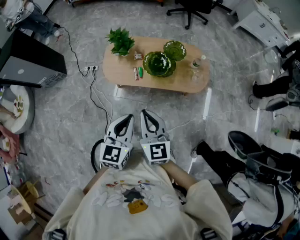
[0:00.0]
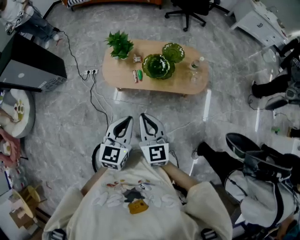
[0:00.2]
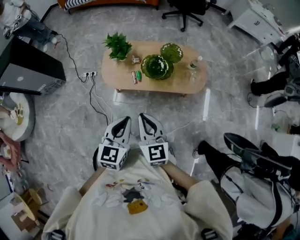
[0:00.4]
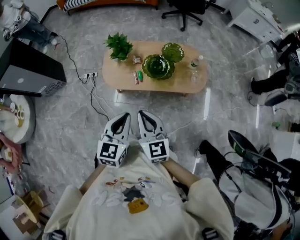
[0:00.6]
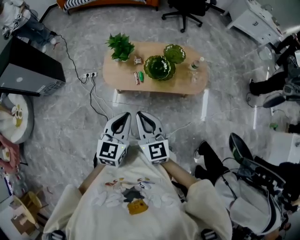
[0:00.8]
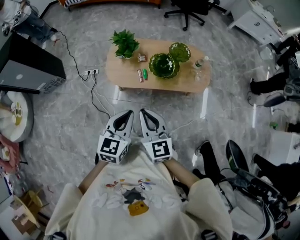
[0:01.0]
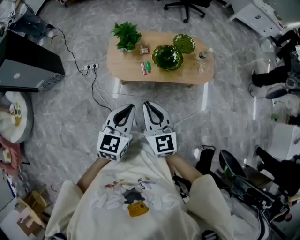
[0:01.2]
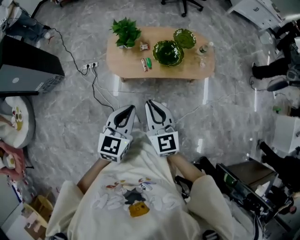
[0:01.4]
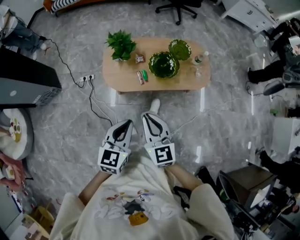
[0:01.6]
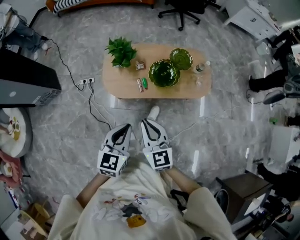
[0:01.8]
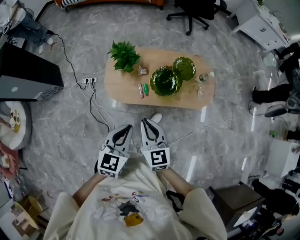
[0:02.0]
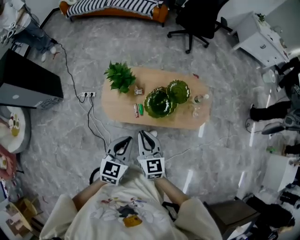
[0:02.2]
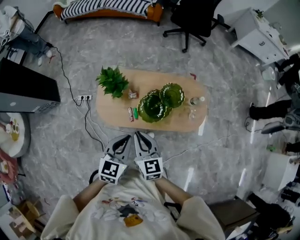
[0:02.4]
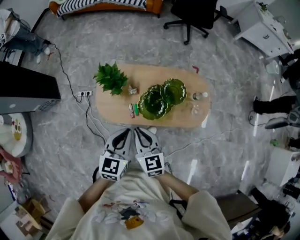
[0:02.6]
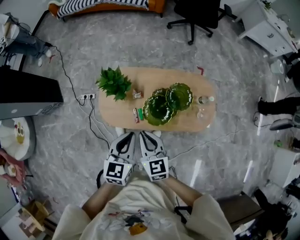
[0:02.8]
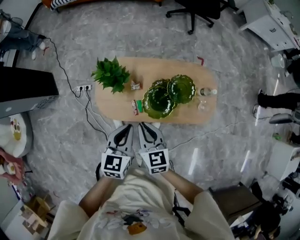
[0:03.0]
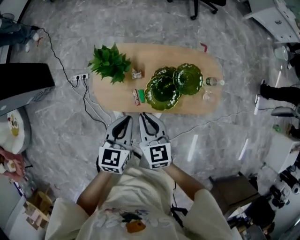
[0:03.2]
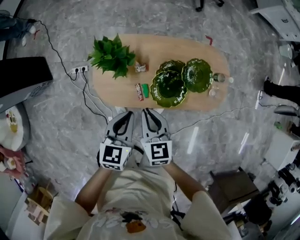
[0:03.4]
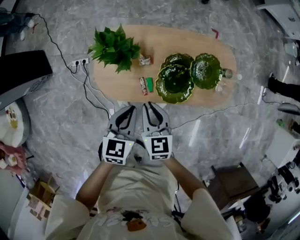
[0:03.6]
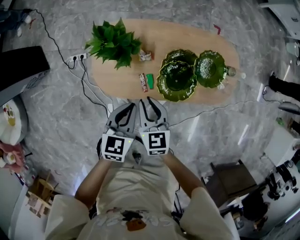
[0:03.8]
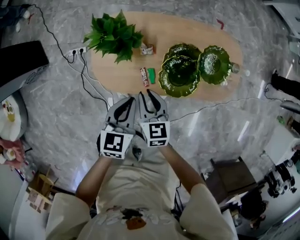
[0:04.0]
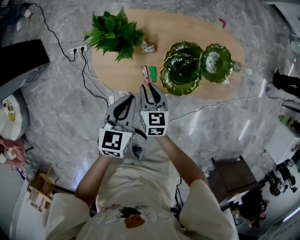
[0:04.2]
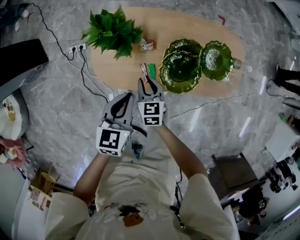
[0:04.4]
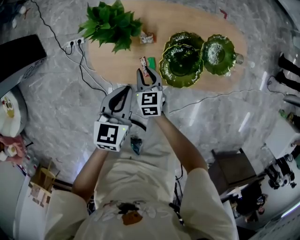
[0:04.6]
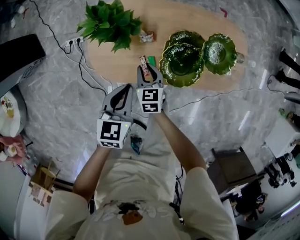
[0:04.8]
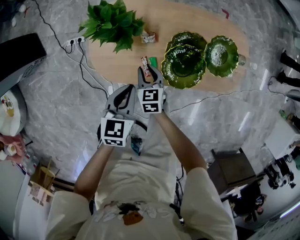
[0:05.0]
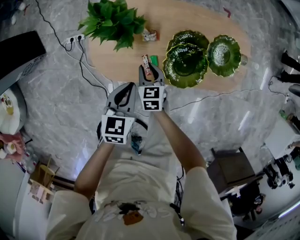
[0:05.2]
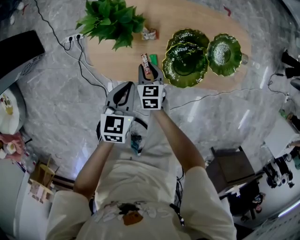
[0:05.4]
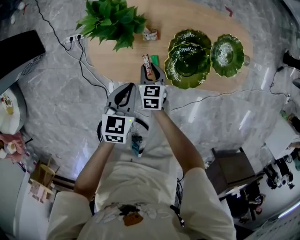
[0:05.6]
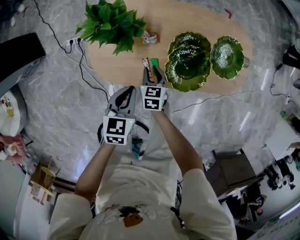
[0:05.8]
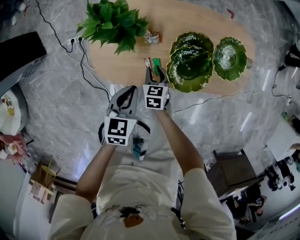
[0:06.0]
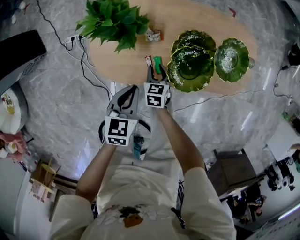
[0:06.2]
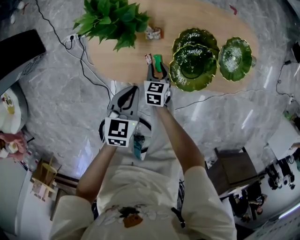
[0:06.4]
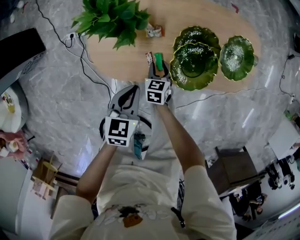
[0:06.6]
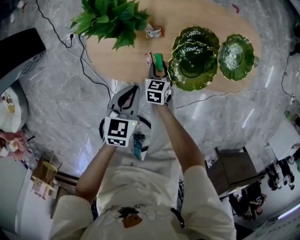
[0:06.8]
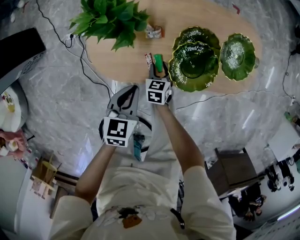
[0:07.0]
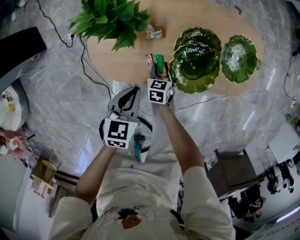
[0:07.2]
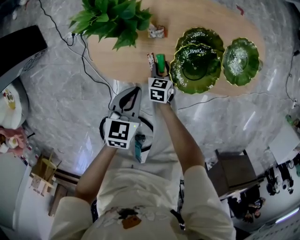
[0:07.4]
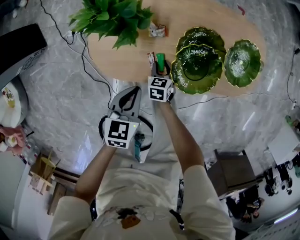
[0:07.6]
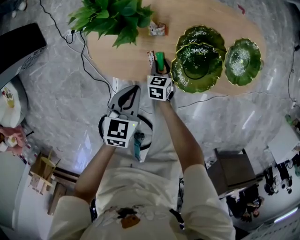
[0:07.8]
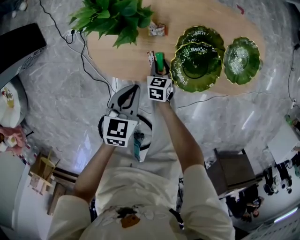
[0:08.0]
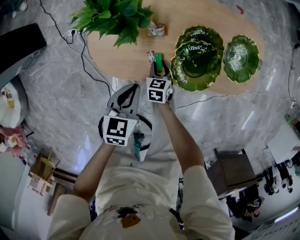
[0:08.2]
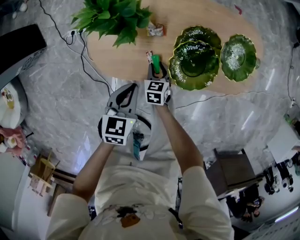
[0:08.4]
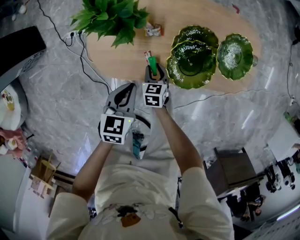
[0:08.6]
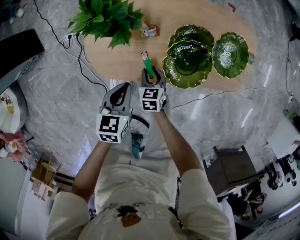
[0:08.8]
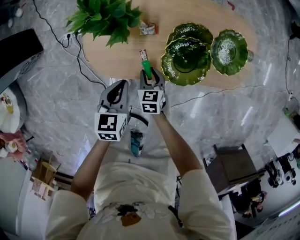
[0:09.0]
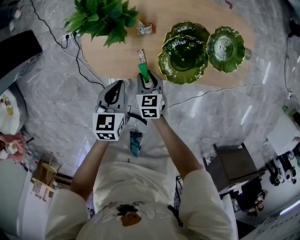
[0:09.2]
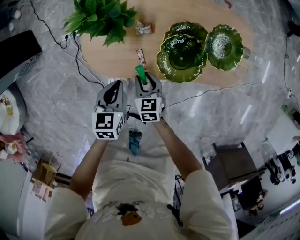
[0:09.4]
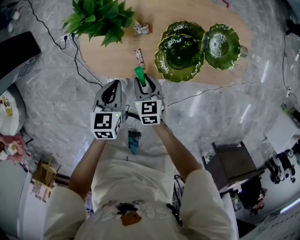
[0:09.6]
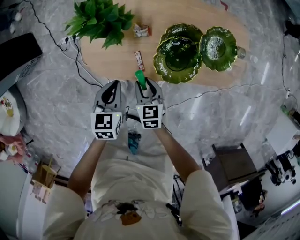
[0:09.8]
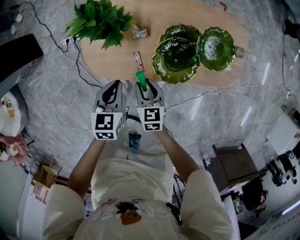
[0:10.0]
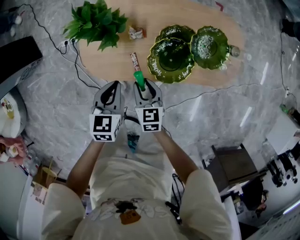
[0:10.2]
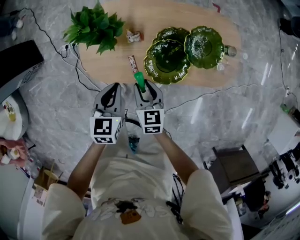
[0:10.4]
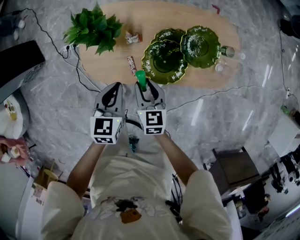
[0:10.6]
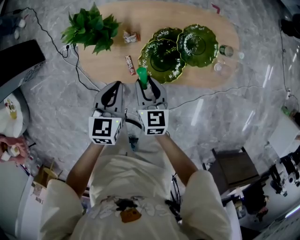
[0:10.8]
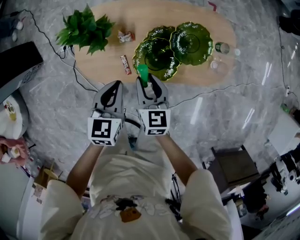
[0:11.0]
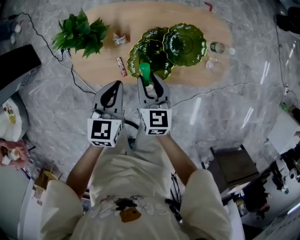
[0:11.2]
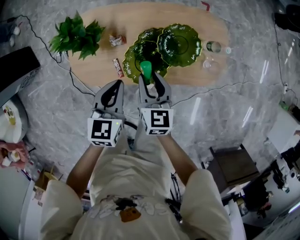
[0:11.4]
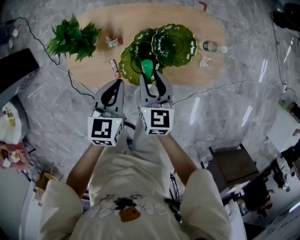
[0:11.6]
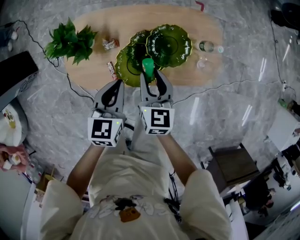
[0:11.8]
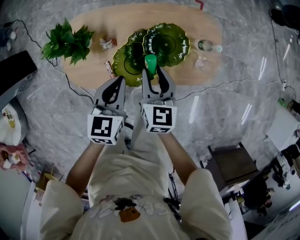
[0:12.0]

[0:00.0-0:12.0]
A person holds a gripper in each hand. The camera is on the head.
0:00.0 to 0:01.6: The right gripper goes some 15 cm to the left and downward, while the left gripper moves to the left, about 15 cm.
0:01.6 to 0:03.0: Both grippers travel together forward, about 30 cm.
0:03.0 to 0:04.4: The left gripper is displaced downward and to the left by about 20 cm. Meanwhile the right gripper moves downward, some 30 cm.
0:04.4 to 0:06.0: The two grippers go approximately 10 cm downward.
0:06.0 to 0:07.6: The right gripper heads downward, covering approximately 10 cm.
0:07.6 to 0:09.0: The right gripper is displaced upward by approximately 10 cm.
0:09.0 to 0:10.4: The right gripper goes roughly 15 cm upward. Meanwhile the left gripper goes about 5 cm upward.
0:10.4 to 0:12.0: The right gripper shifts approximately 25 cm to the right, forward and upward. Meanwhile the left gripper is displaced to the right and forward by approximately 15 cm.

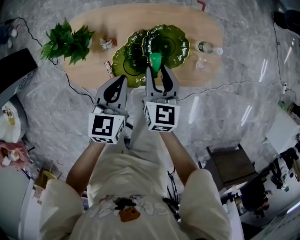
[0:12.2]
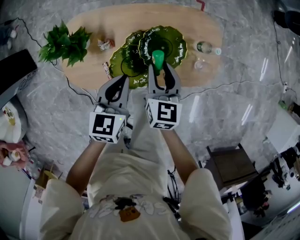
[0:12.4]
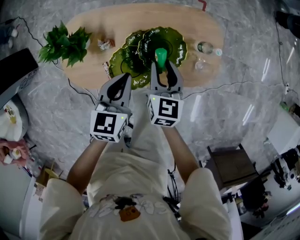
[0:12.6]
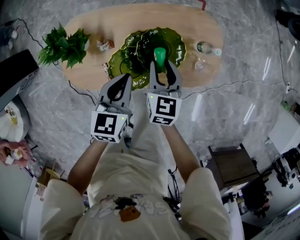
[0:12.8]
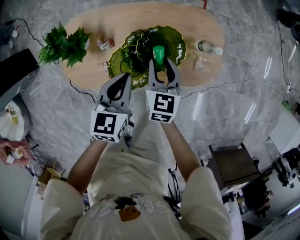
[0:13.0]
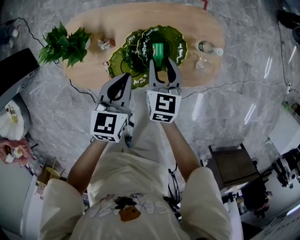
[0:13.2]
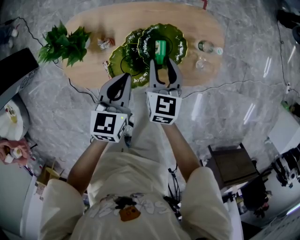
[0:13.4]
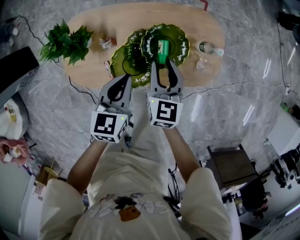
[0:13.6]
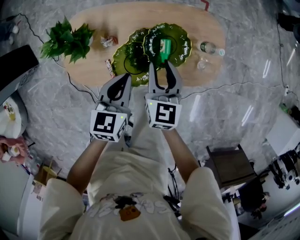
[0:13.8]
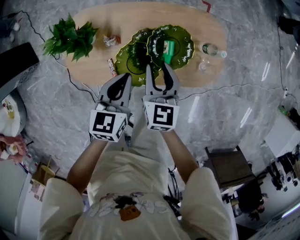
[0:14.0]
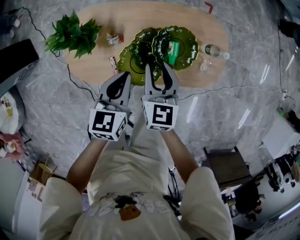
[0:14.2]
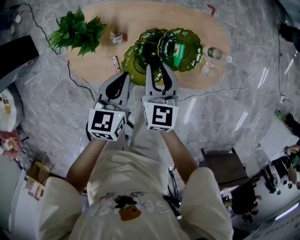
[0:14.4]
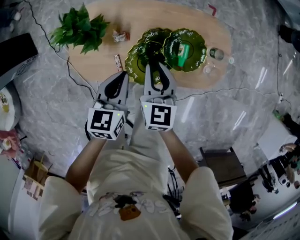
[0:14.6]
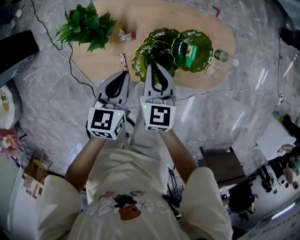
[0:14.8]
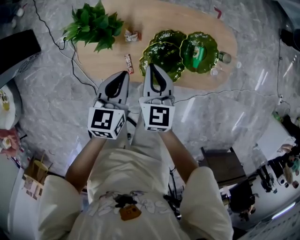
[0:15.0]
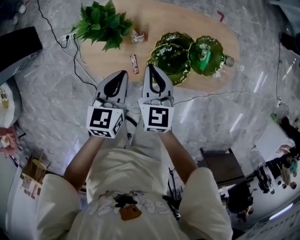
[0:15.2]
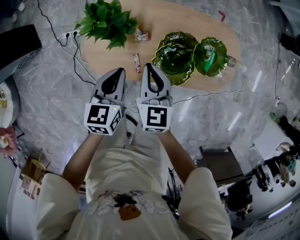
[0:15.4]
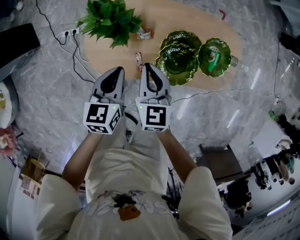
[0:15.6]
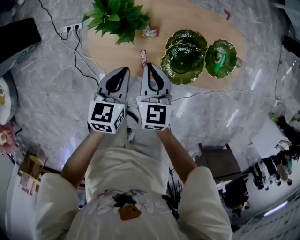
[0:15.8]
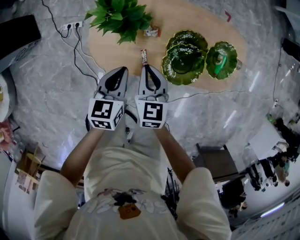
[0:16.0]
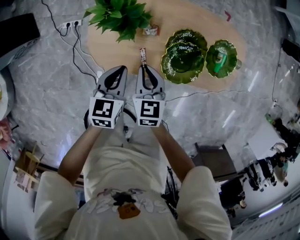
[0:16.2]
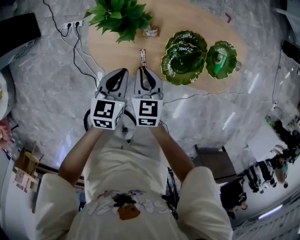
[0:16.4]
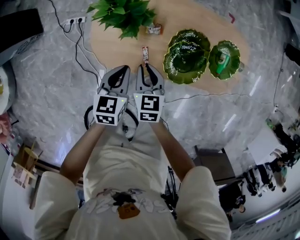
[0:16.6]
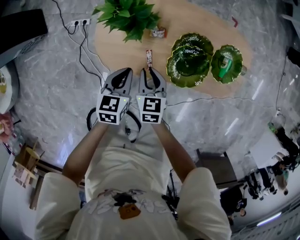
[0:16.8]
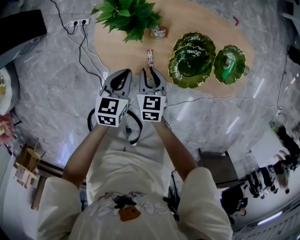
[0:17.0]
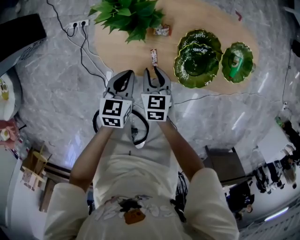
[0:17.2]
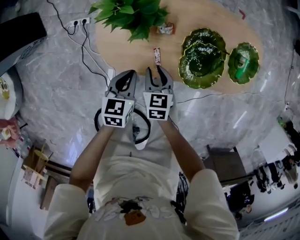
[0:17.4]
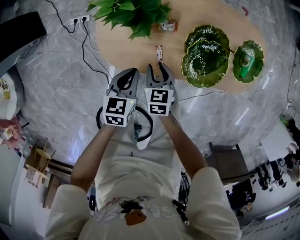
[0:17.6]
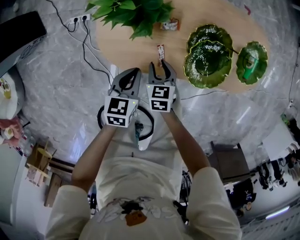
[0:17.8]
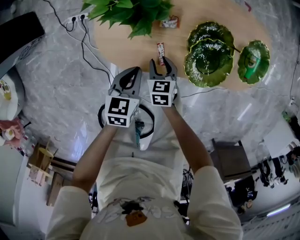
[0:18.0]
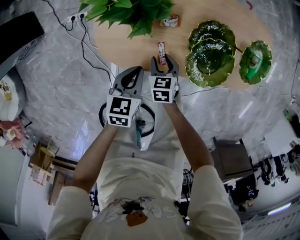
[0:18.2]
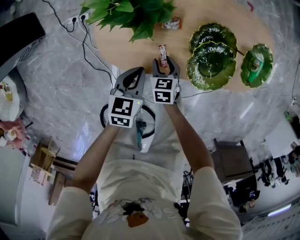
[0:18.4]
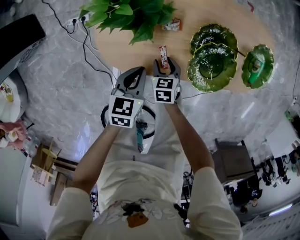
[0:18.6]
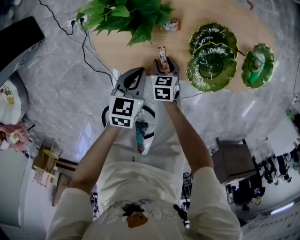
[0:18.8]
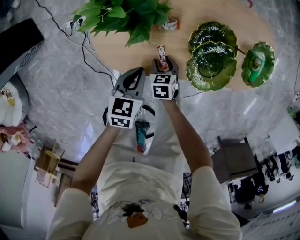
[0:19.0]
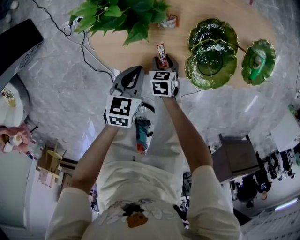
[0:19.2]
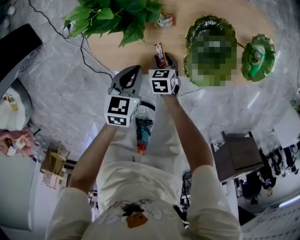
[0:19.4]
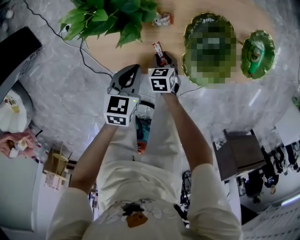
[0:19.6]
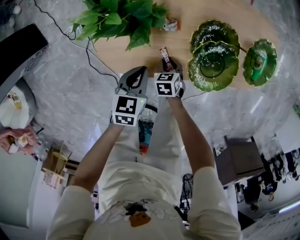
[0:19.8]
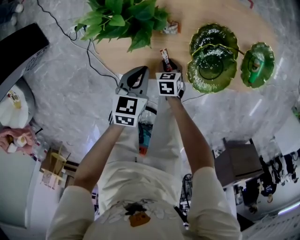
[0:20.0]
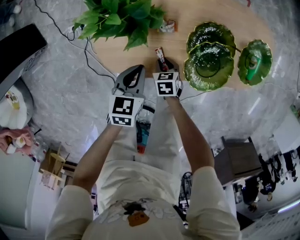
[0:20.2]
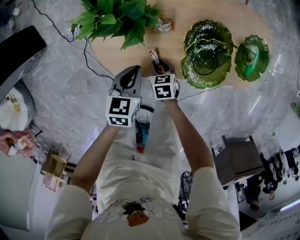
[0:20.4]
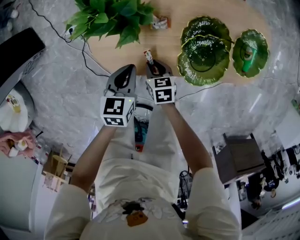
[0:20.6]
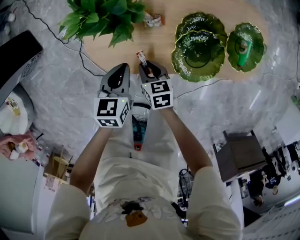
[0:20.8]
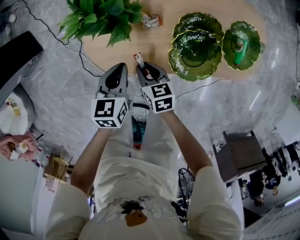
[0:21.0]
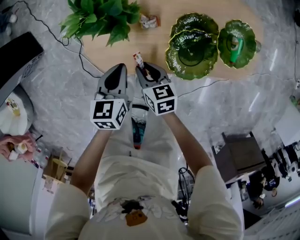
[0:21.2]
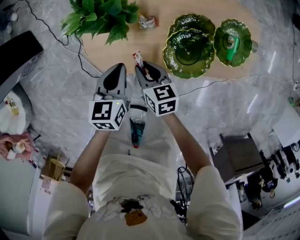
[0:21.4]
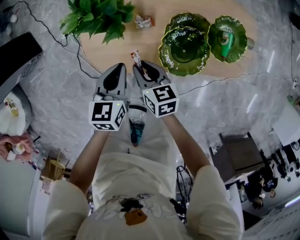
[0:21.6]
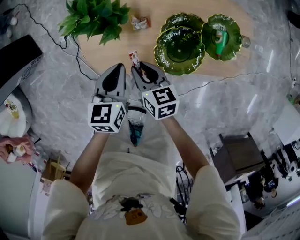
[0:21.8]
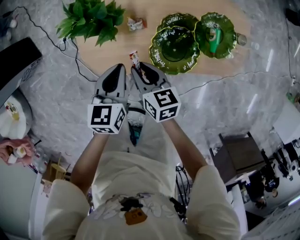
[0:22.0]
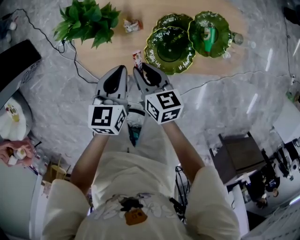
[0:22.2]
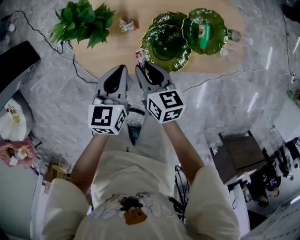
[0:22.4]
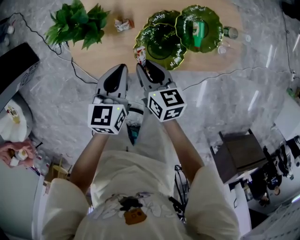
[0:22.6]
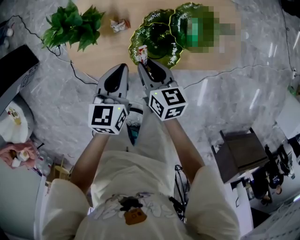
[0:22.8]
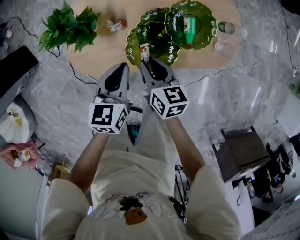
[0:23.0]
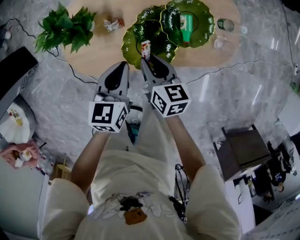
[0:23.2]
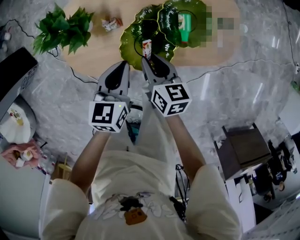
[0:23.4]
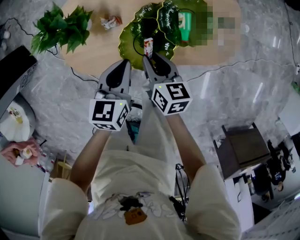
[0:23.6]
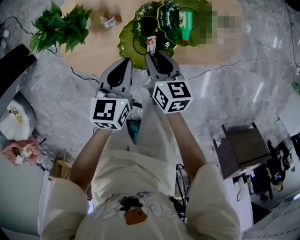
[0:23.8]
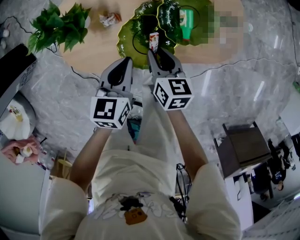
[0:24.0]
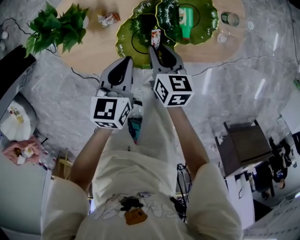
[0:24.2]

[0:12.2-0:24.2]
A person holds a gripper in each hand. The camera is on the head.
0:12.2 to 0:13.8: The grippers make only small movements.
0:13.8 to 0:15.2: The grippers both shift to the left by approximately 20 cm. The right gripper closes up.
0:15.2 to 0:16.6: The left gripper shifts roughly 10 cm downward and to the left. The right gripper goes approximately 15 cm downward, to the left and backward.
0:16.6 to 0:18.2: The left gripper goes approximately 10 cm downward. The right gripper shifts roughly 20 cm downward, and opens up.
0:18.2 to 0:19.8: The right gripper shifts approximately 5 cm downward.
0:19.8 to 0:21.2: The left gripper is displaced upward by approximately 5 cm. Meanwhile the right gripper travels upward by approximately 15 cm, and rotates roughly 30 degrees.
0:21.2 to 0:22.6: Both grippers travel together to the right and upward, approximately 15 cm.
0:22.6 to 0:24.2: The right gripper travels to the right and downward by approximately 10 cm. Meanwhile the left gripper heads to the right, covering roughly 10 cm.
